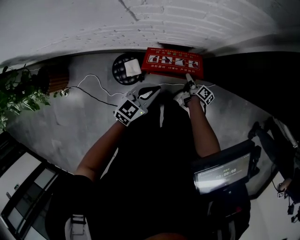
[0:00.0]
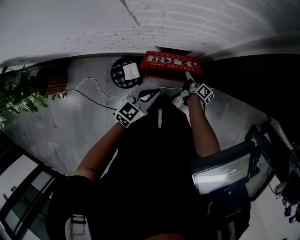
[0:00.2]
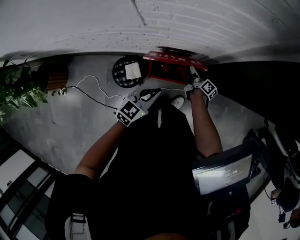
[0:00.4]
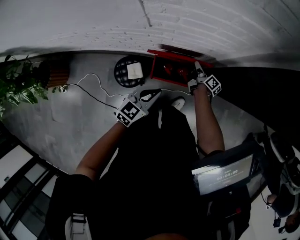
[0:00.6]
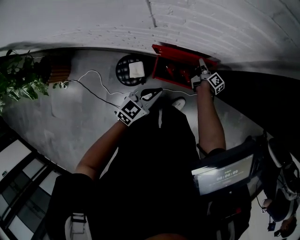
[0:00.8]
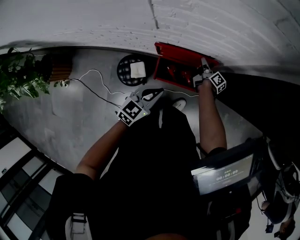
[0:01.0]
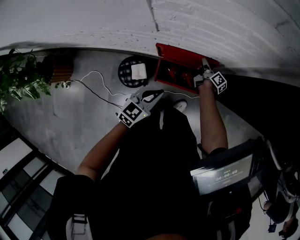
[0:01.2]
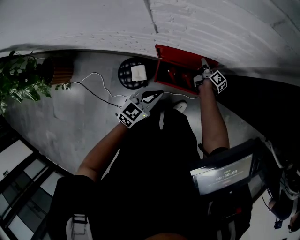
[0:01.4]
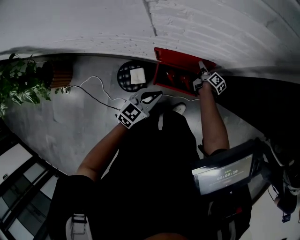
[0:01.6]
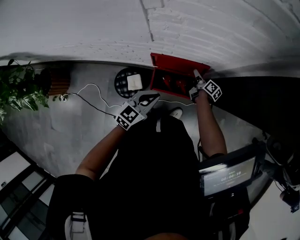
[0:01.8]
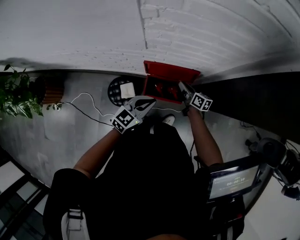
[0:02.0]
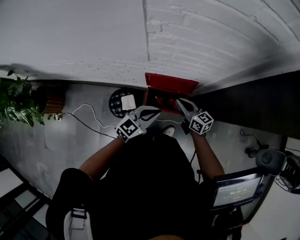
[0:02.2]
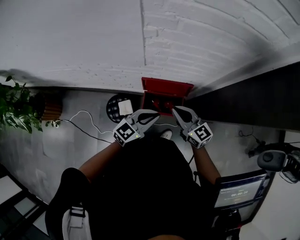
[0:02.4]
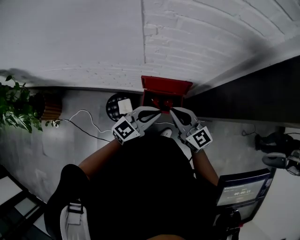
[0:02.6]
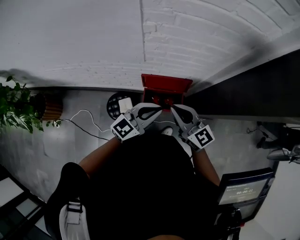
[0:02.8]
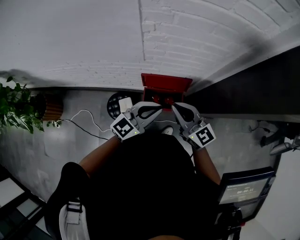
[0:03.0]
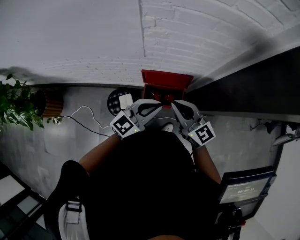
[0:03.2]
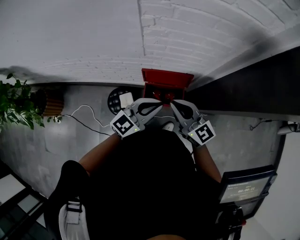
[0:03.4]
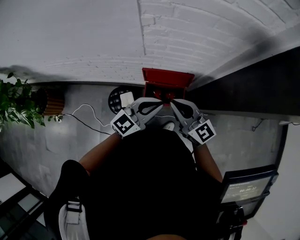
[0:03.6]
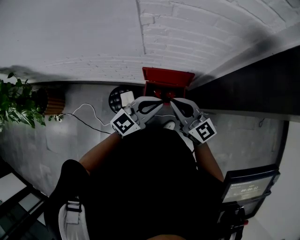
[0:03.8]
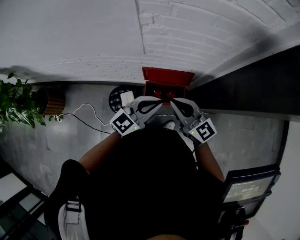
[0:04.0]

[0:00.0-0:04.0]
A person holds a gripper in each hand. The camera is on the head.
0:00.0 to 0:01.4: The right gripper shifts approximately 20 cm forward.
0:01.4 to 0:02.6: The right gripper is displaced upward and backward by roughly 50 cm, rolls counterclockwise, seen from behind, by approximately 70 degrees, and opens, then closes once more; the left gripper moves upward, approximately 15 cm, and rotates some 20 degrees.
0:02.6 to 0:04.0: The grippers stay close to where they were, moving slightly.

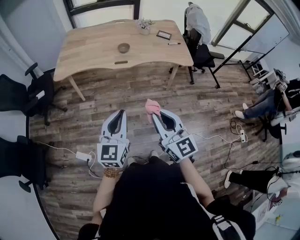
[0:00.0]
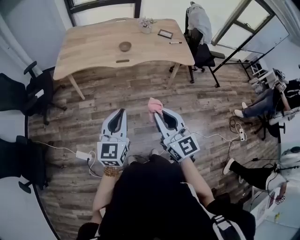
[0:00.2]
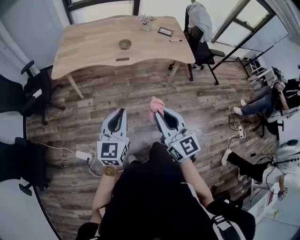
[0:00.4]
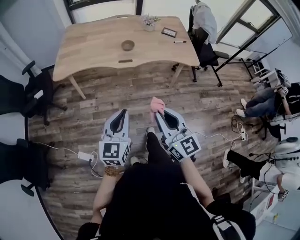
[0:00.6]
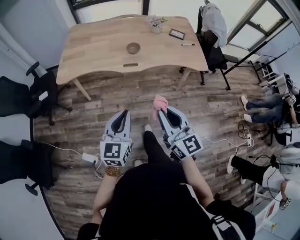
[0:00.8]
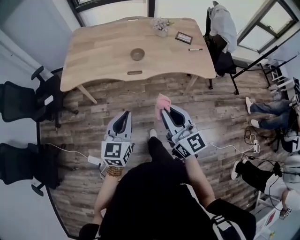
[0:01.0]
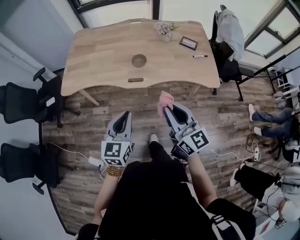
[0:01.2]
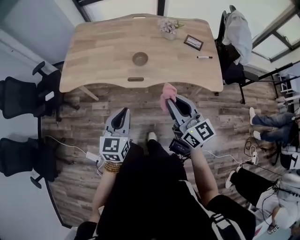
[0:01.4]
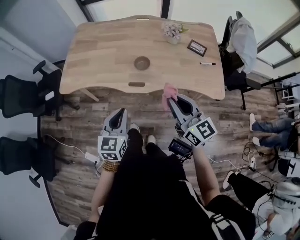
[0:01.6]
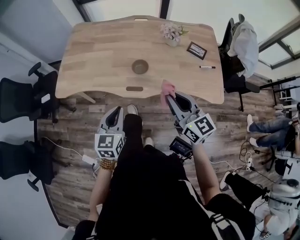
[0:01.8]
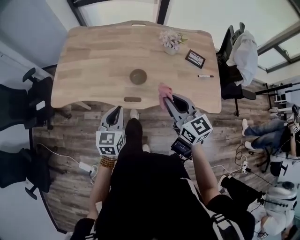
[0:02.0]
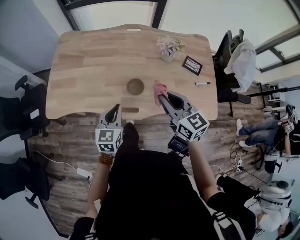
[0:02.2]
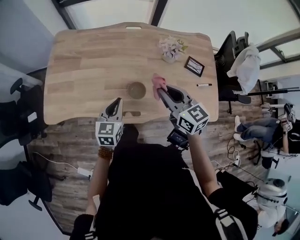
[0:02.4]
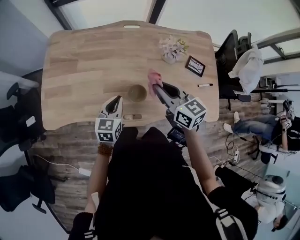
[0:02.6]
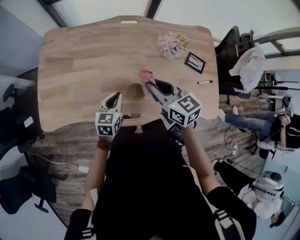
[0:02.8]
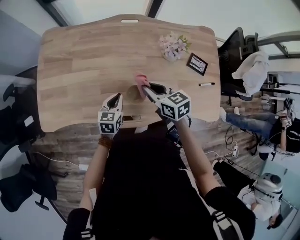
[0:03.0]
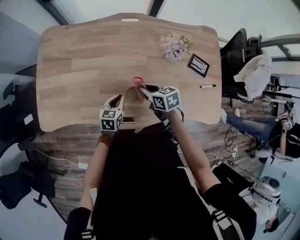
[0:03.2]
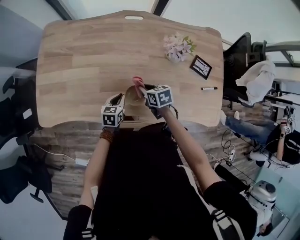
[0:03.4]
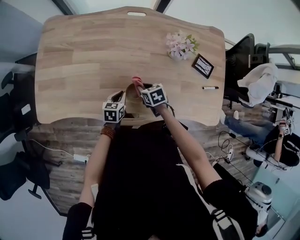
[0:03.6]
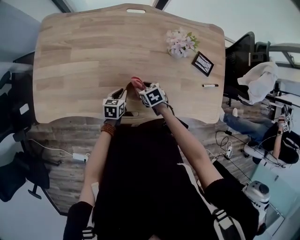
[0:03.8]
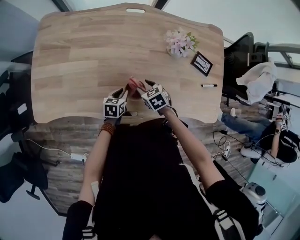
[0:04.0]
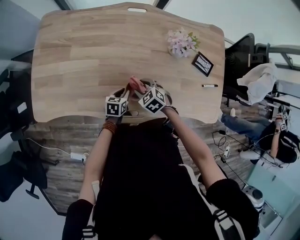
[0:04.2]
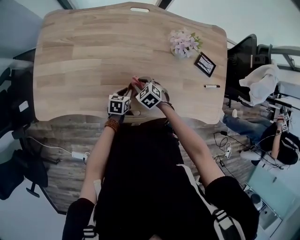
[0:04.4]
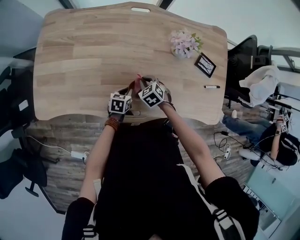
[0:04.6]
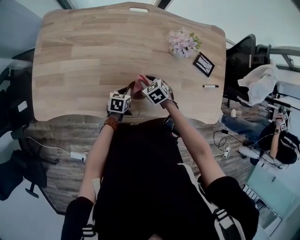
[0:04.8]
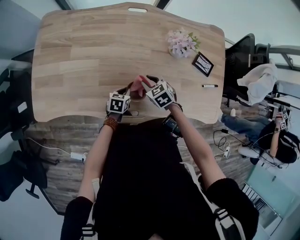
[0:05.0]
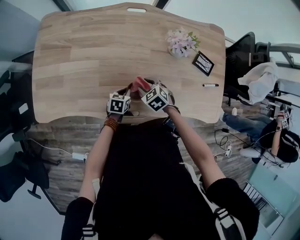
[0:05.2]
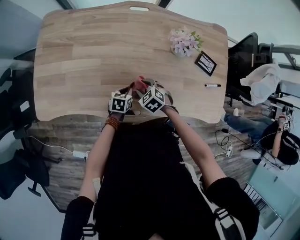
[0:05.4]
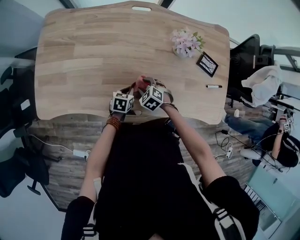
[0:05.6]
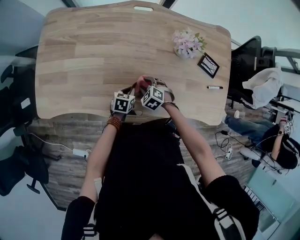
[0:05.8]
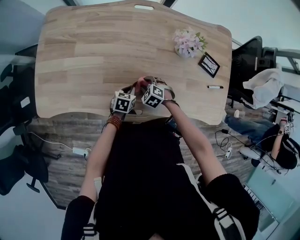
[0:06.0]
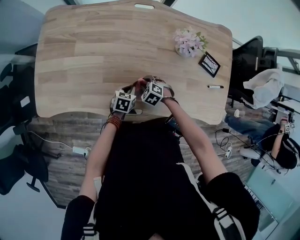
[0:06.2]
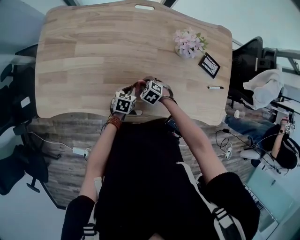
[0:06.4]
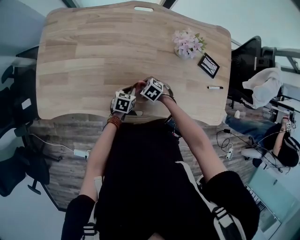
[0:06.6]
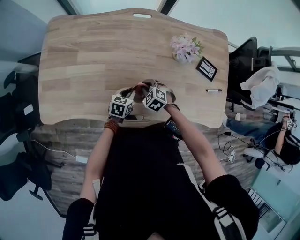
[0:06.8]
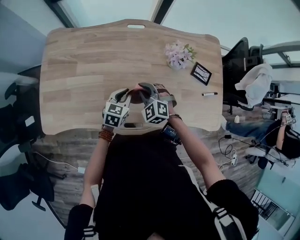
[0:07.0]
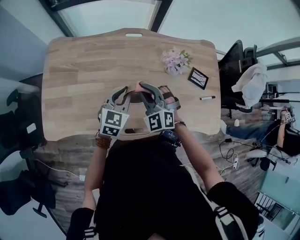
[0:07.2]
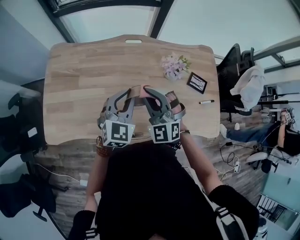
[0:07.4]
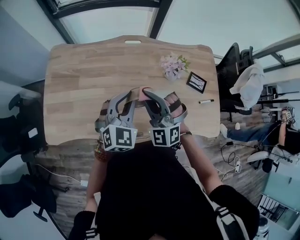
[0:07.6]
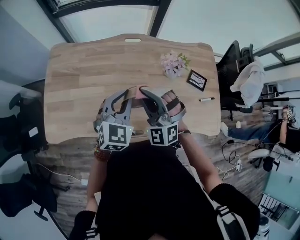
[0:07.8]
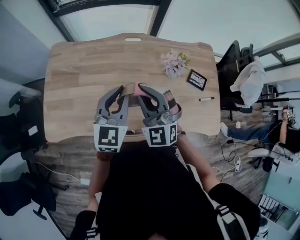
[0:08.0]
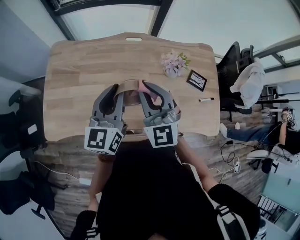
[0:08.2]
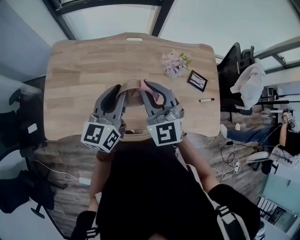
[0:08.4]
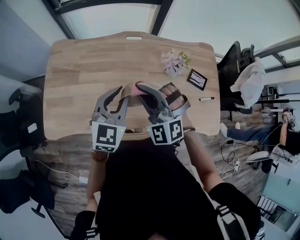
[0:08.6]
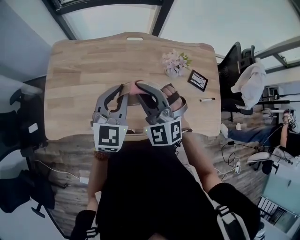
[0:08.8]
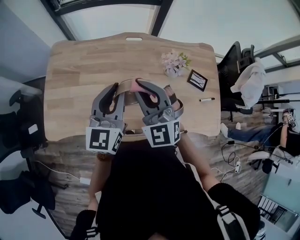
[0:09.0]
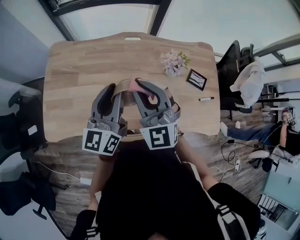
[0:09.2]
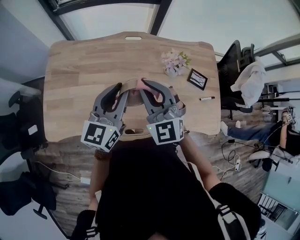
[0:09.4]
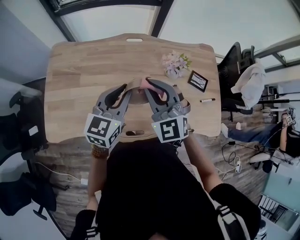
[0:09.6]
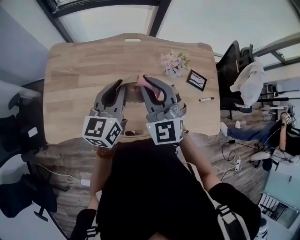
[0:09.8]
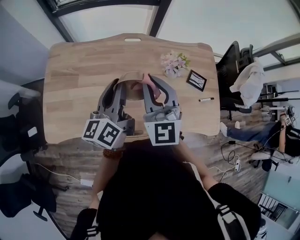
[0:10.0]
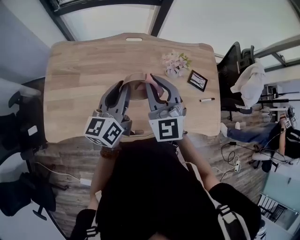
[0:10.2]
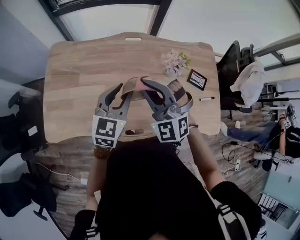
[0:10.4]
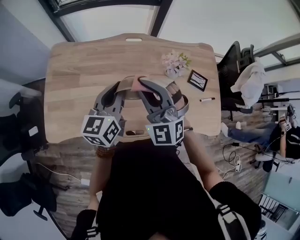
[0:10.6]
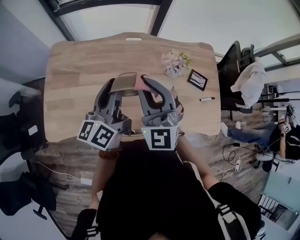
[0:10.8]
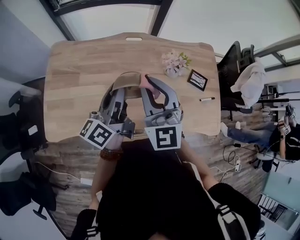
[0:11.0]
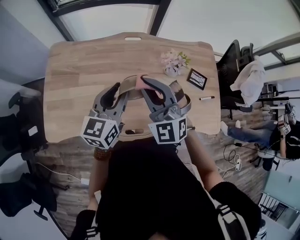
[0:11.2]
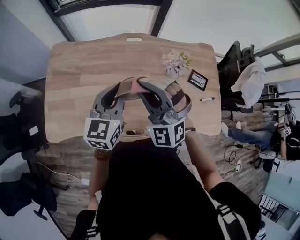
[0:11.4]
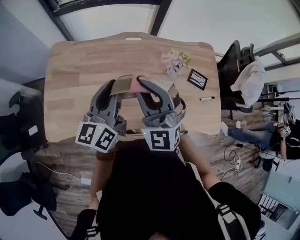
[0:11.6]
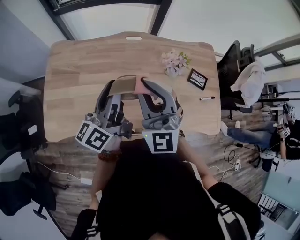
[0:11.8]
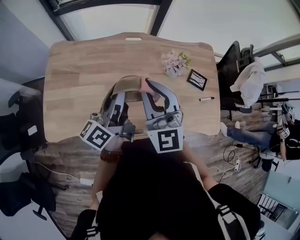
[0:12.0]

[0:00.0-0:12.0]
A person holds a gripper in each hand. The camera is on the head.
0:00.0 to 0:01.6: Both grippers travel together forward, about 40 cm.
0:01.6 to 0:03.0: The two grippers go some 40 cm forward and downward. The right gripper angles its fingers downward, by about 30 degrees.
0:03.0 to 0:04.4: Both grippers move downward, about 15 cm. The left gripper turns by approximately 20 degrees, while the right gripper swivels about 40 degrees, and opens, then closes again.
0:04.4 to 0:06.0: The right gripper closes, then reopens.
0:06.0 to 0:07.6: The two grippers go about 35 cm upward. The right gripper tips its fingers upward by some 60 degrees, and closes, while the left gripper points its fingers about 30 degrees further upward.
0:07.6 to 0:09.0: The right gripper travels upward by approximately 5 cm; the left gripper moves up and down over some 5 cm, changing direction 2 times, and turns by approximately 40 degrees.
0:09.0 to 0:10.4: The left gripper travels downward by some 5 cm.
0:10.4 to 0:12.0: The left gripper goes up and down, approximately 5 cm each way, reversing 2 times, and rolls counterclockwise, seen from behind, by some 50 degrees. The right gripper turns by some 40 degrees.

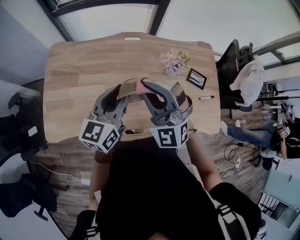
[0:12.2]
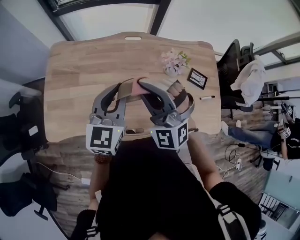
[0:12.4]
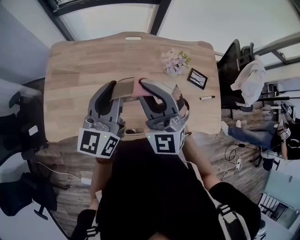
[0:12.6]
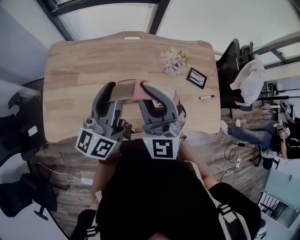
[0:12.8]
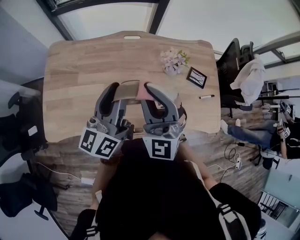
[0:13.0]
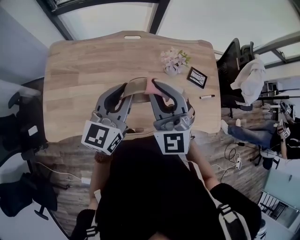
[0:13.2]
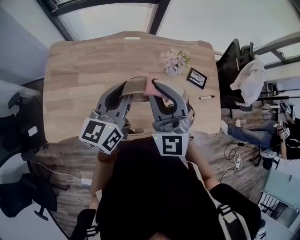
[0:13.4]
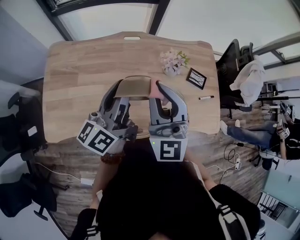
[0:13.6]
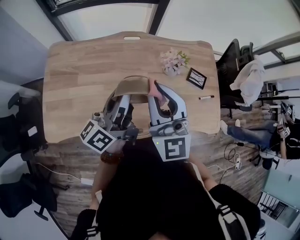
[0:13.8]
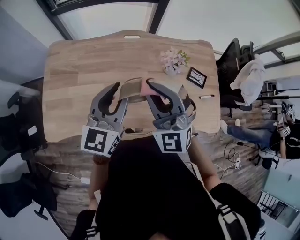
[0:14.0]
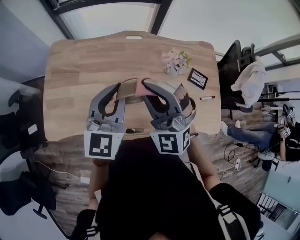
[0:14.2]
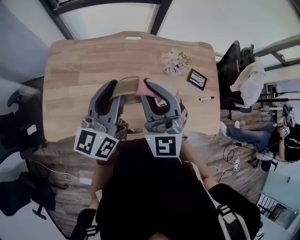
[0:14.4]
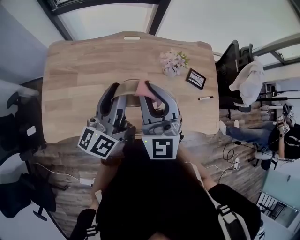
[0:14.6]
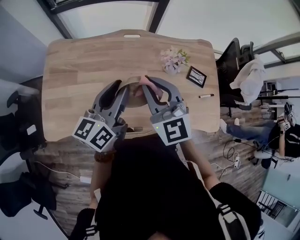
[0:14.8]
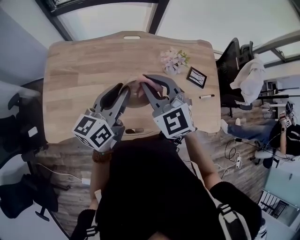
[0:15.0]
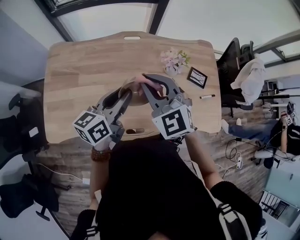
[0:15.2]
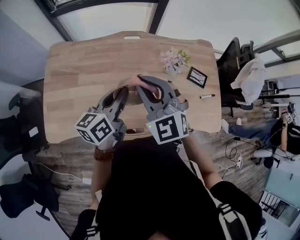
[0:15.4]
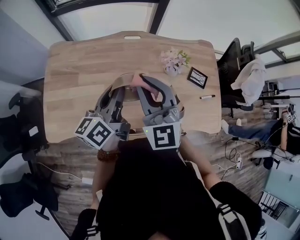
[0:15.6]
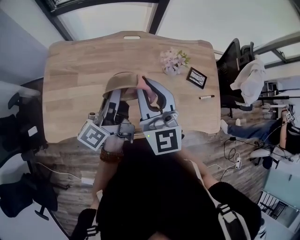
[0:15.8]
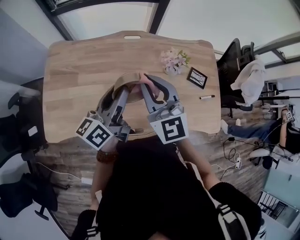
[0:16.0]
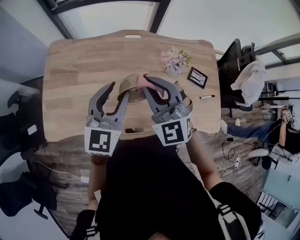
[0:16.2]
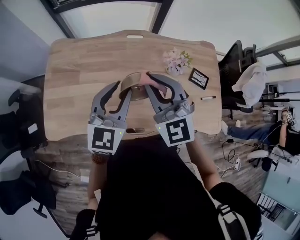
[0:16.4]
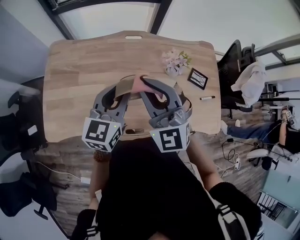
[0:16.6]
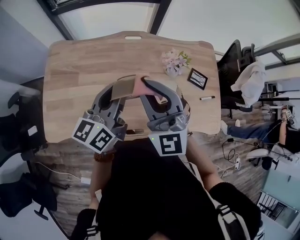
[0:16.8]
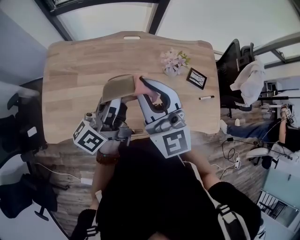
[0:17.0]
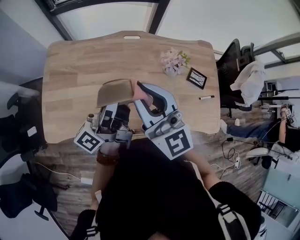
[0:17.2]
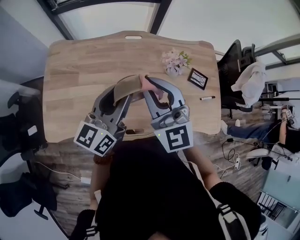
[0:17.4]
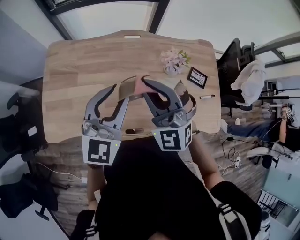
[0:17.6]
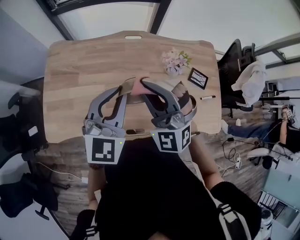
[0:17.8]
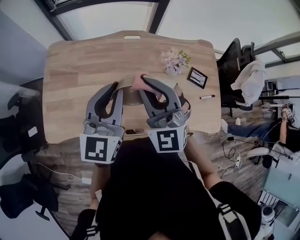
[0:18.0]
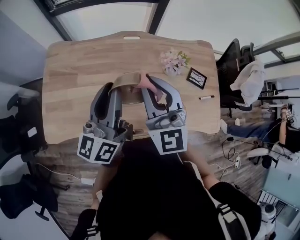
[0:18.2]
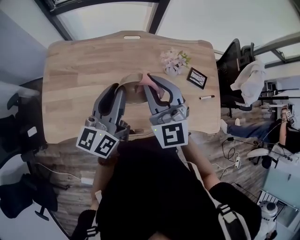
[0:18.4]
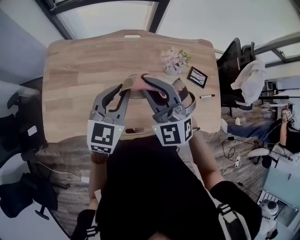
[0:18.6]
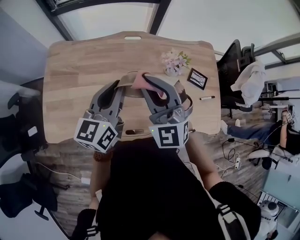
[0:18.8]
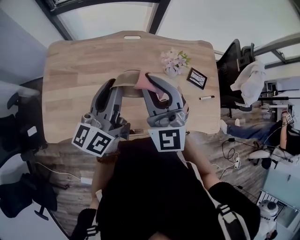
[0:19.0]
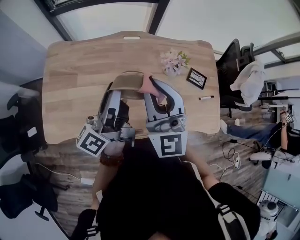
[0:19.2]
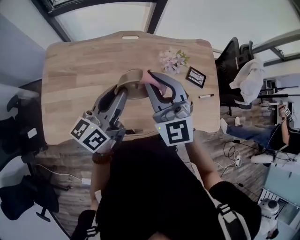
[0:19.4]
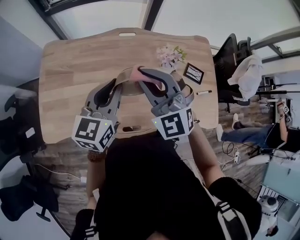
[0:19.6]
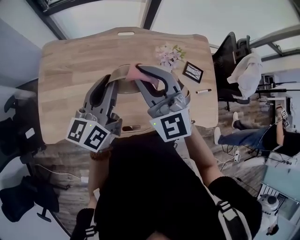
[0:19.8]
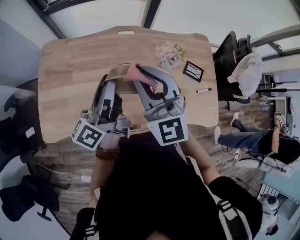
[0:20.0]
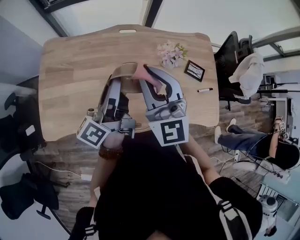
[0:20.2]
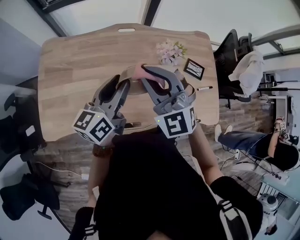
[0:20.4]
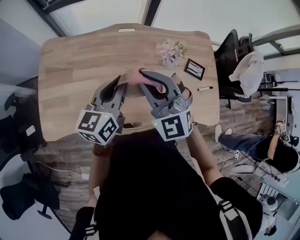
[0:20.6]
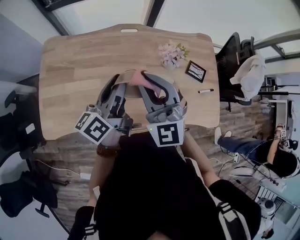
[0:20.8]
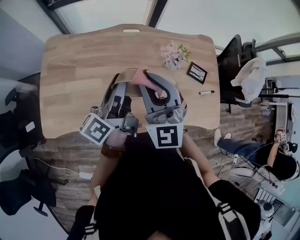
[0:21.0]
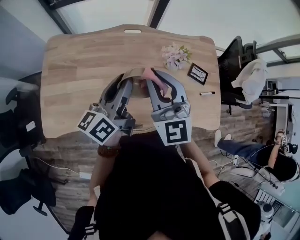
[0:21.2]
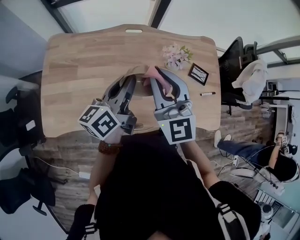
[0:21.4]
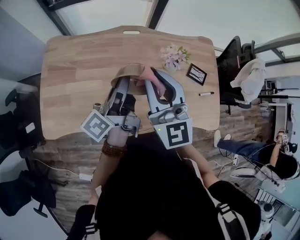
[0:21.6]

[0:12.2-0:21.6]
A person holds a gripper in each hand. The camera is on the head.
0:12.2 to 0:13.8: The left gripper turns by roughly 40 degrees. The right gripper moves approximately 5 cm, and rotates some 40 degrees.
0:13.8 to 0:15.4: The two grippers go some 5 cm downward. The right gripper changes its angle by about 30 degrees; the left gripper turns by some 30 degrees.
0:15.4 to 0:17.0: Both grippers move upward, roughly 5 cm. The right gripper rotates some 30 degrees, while the left gripper changes its angle by about 30 degrees, and opens, then closes again.
0:17.0 to 0:18.4: The left gripper changes its angle by about 30 degrees. The right gripper moves some 5 cm.
0:18.4 to 0:20.0: The left gripper rotates roughly 30 degrees.
